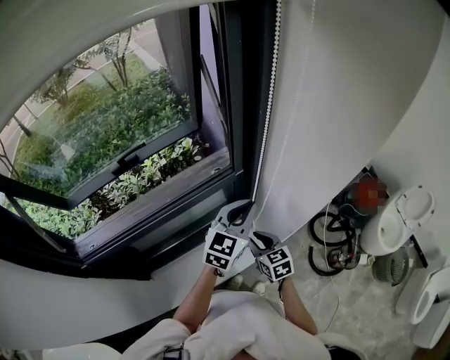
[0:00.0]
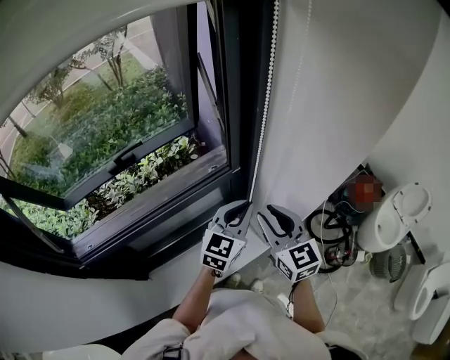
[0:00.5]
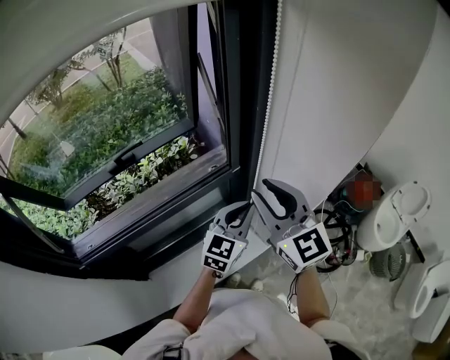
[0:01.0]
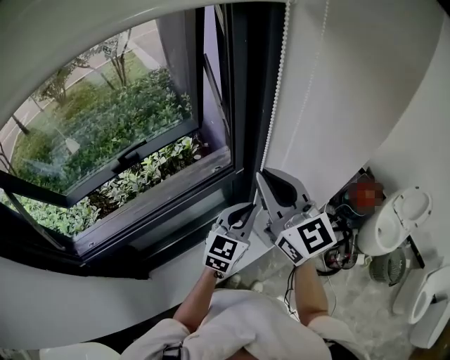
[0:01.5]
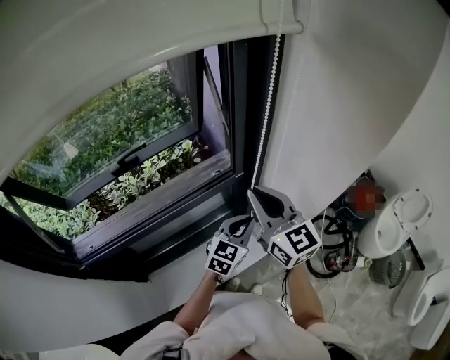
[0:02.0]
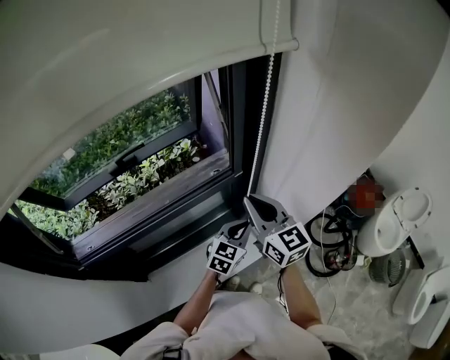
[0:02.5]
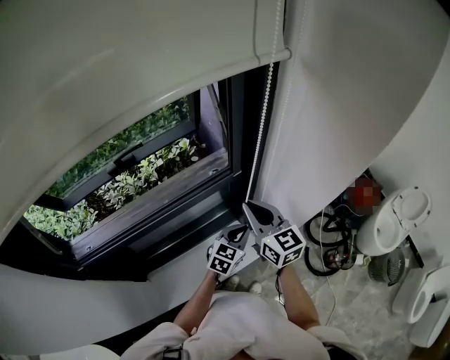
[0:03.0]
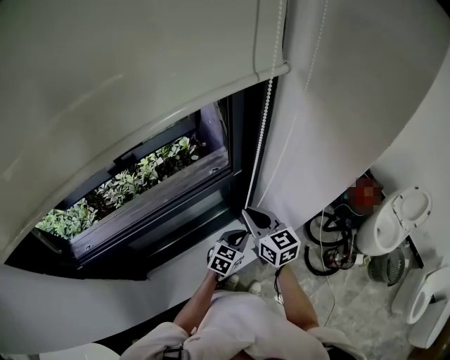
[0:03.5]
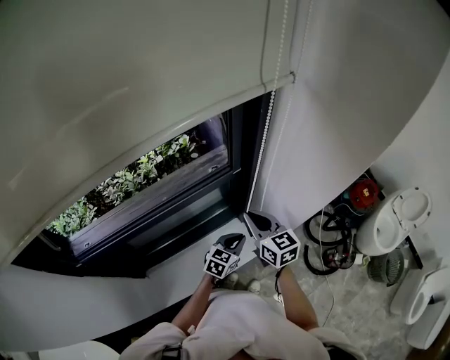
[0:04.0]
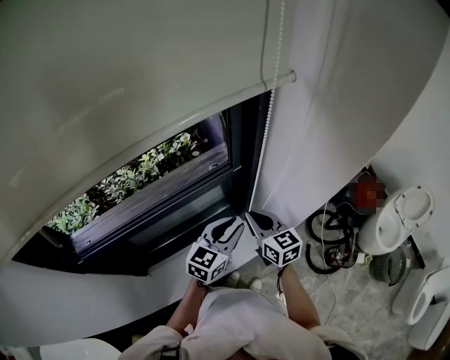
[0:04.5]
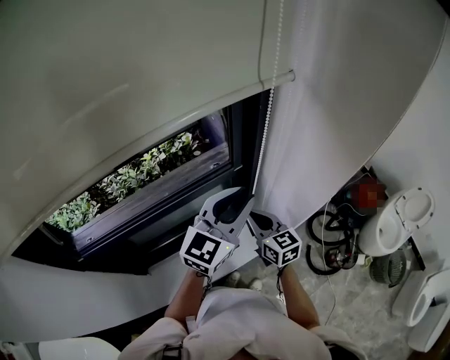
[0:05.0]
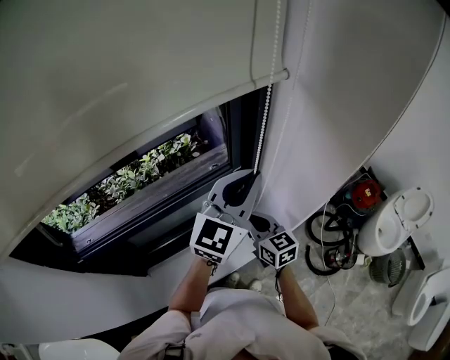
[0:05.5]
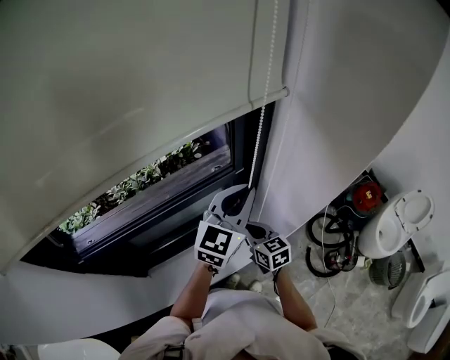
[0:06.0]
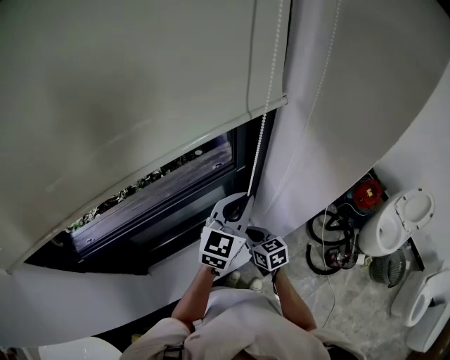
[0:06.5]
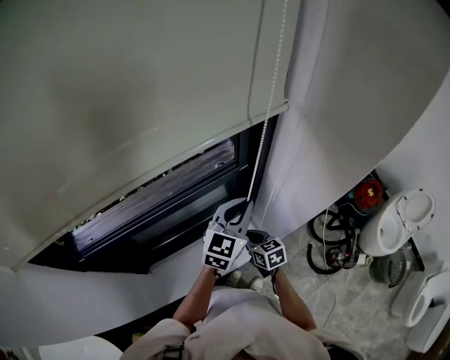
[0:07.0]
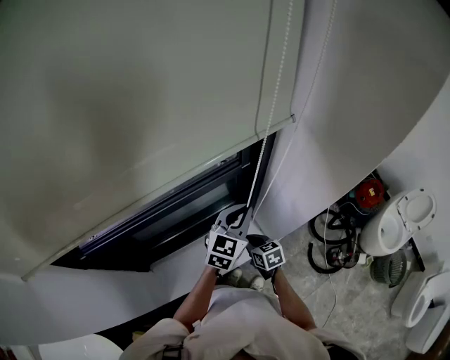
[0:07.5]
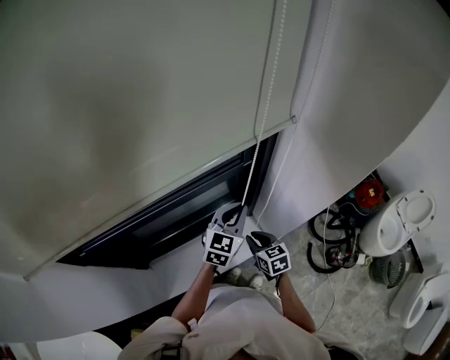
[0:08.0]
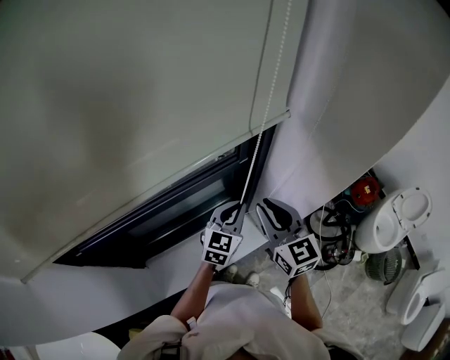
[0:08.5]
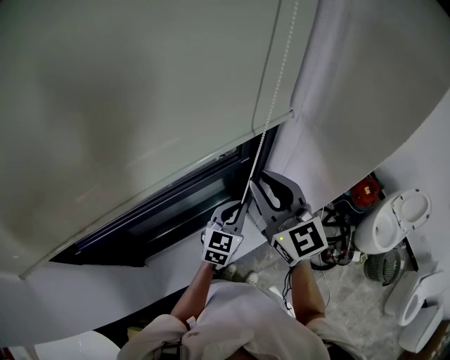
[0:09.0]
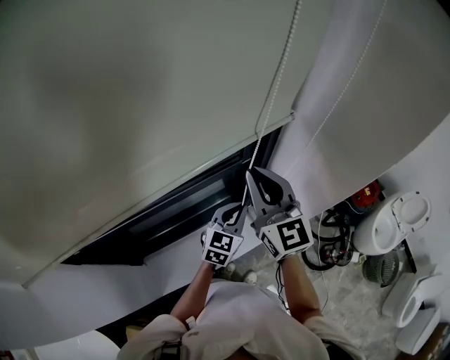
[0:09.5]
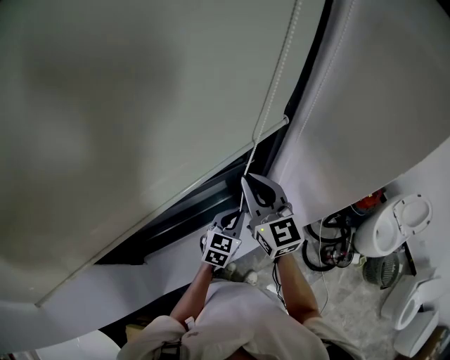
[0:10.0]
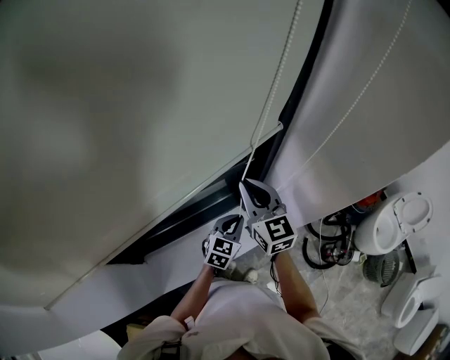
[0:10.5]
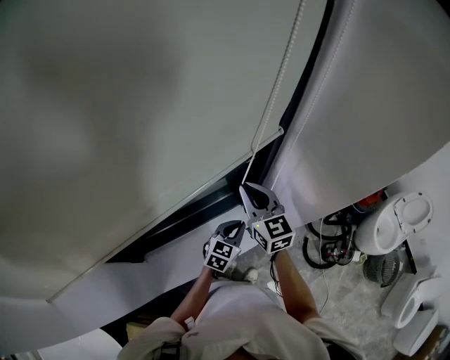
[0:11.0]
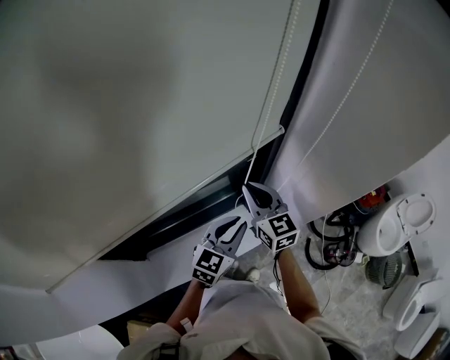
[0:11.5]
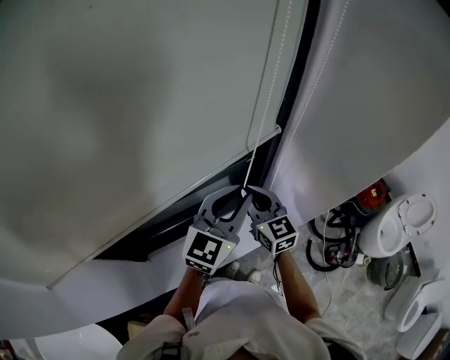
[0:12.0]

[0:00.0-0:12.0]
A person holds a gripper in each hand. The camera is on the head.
0:00.0 to 0:02.0: The left gripper moves downward, approximately 5 cm; the right gripper moves upward, roughly 25 cm, tips its fingers upward by about 30 degrees, and closes its fingers.
0:02.0 to 0:04.0: The two grippers go approximately 15 cm downward. The right gripper swivels approximately 20 degrees.
0:04.0 to 0:06.0: The left gripper heads upward, covering some 30 cm, and rotates roughly 30 degrees, while the right gripper shifts some 5 cm downward.
0:06.0 to 0:08.0: The right gripper travels downward by about 10 cm. Meanwhile the left gripper heads downward, covering roughly 15 cm.
0:08.0 to 0:10.0: The right gripper goes approximately 30 cm upward and forward, and tilts its fingers about 30 degrees upward; the left gripper shifts about 5 cm downward.
0:10.0 to 0:12.0: The left gripper travels upward by approximately 20 cm, and changes its angle by some 20 degrees. Meanwhile the right gripper goes approximately 10 cm downward.

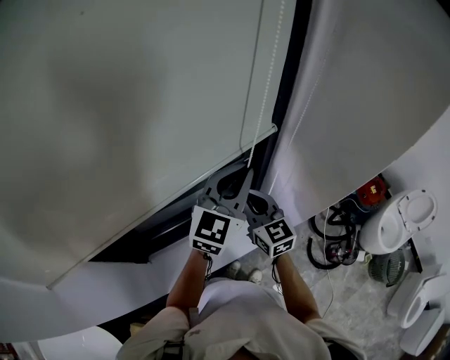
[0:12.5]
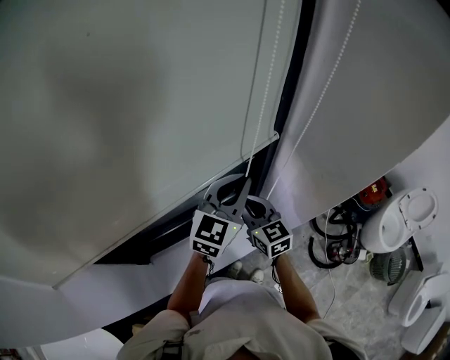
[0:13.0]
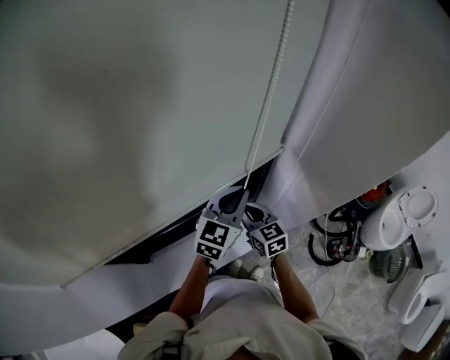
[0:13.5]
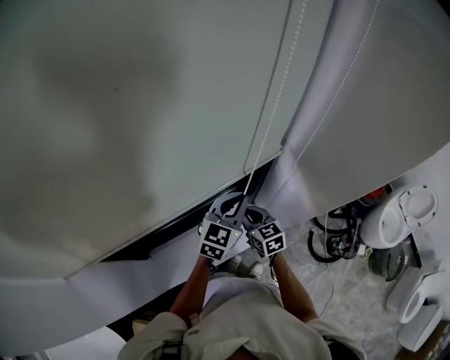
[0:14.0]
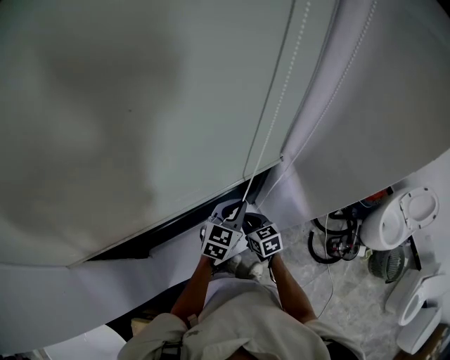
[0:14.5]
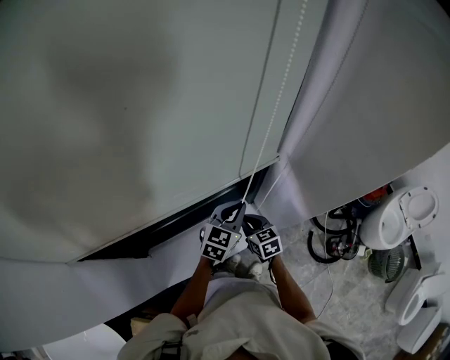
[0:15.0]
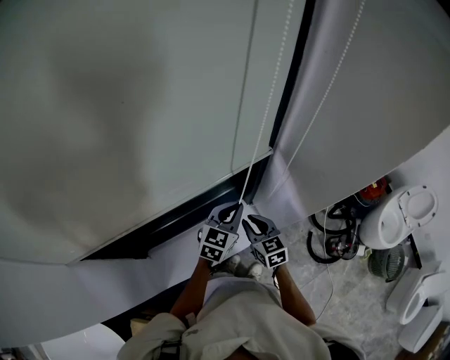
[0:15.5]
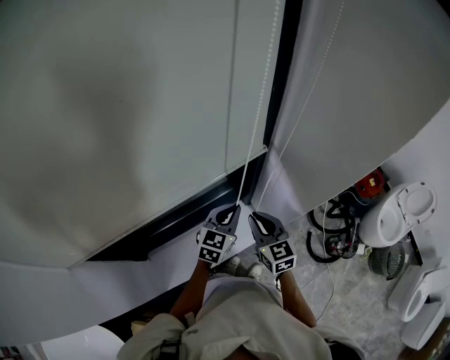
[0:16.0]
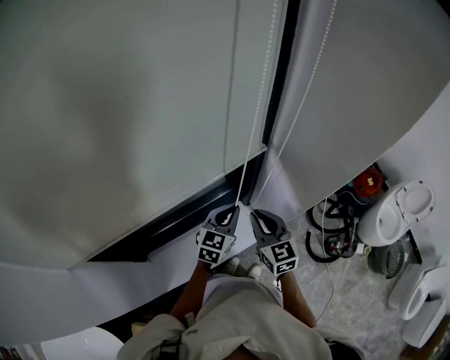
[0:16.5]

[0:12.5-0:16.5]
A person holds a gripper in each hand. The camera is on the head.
0:12.5 to 0:14.5: Both grippers move downward, approximately 20 cm. The right gripper swivels roughly 30 degrees. Meanwhile the left gripper rotates some 20 degrees.
0:14.5 to 0:16.5: The right gripper shifts about 15 cm upward, and swivels some 20 degrees.

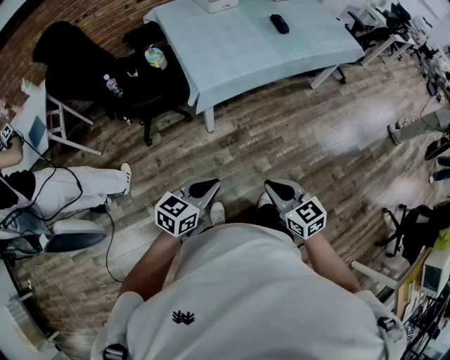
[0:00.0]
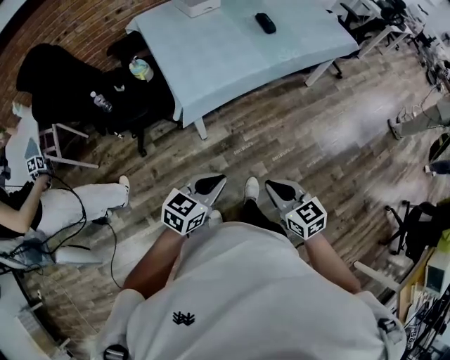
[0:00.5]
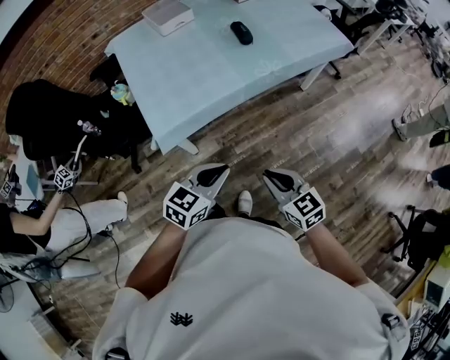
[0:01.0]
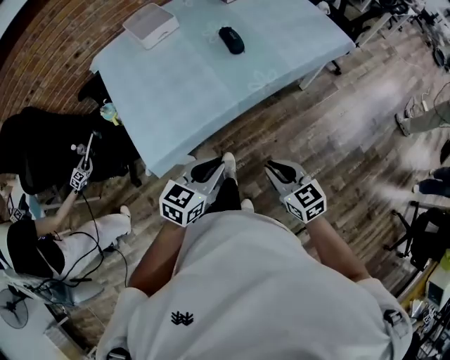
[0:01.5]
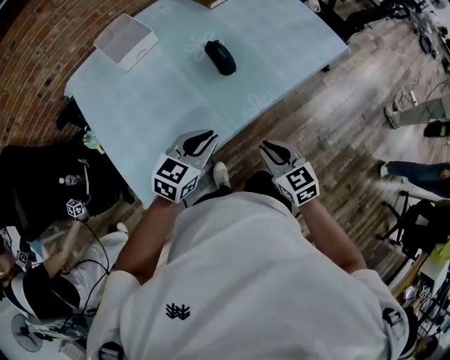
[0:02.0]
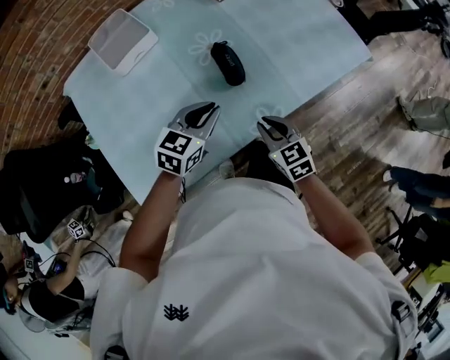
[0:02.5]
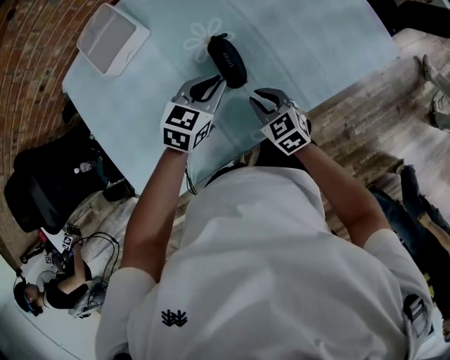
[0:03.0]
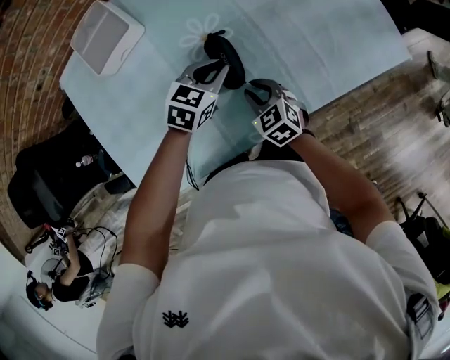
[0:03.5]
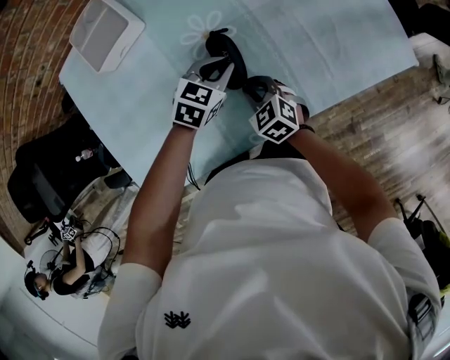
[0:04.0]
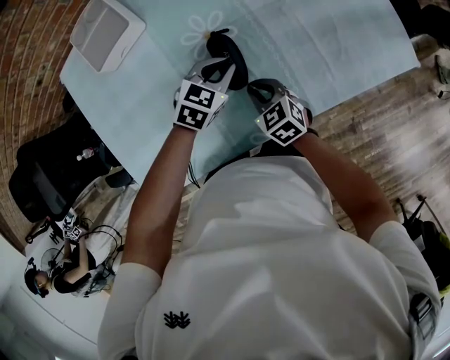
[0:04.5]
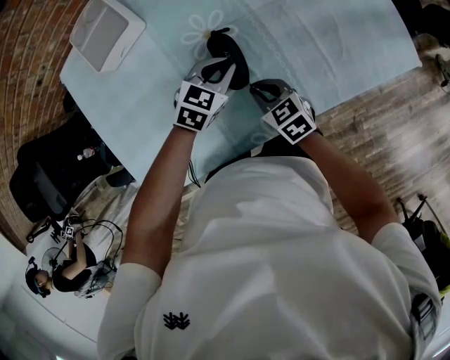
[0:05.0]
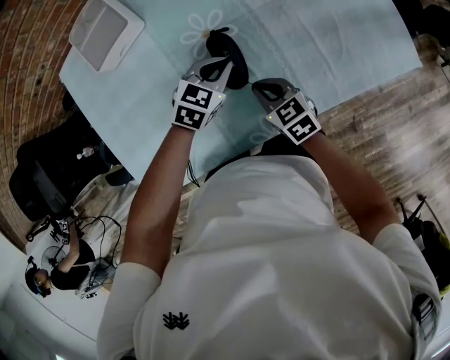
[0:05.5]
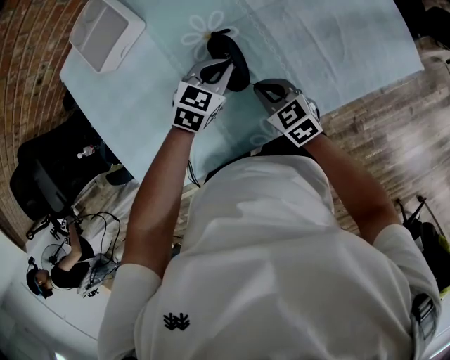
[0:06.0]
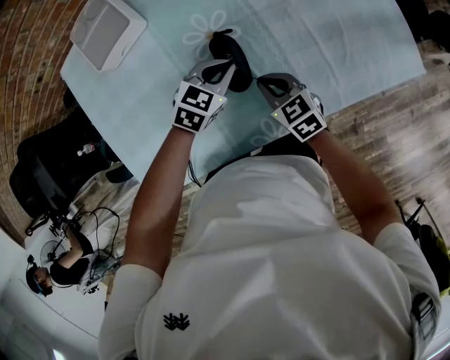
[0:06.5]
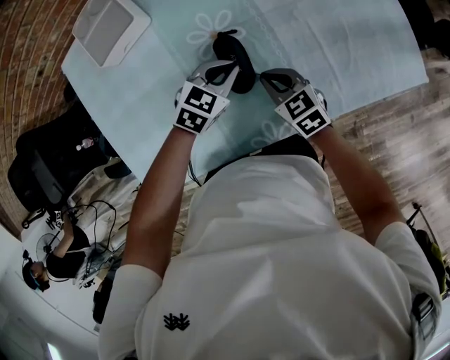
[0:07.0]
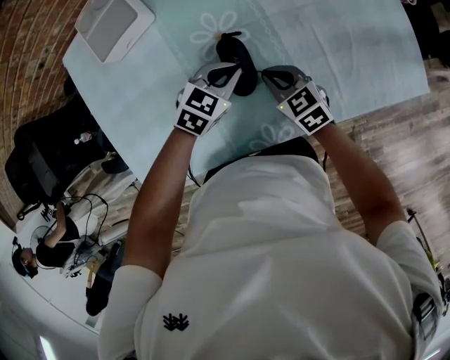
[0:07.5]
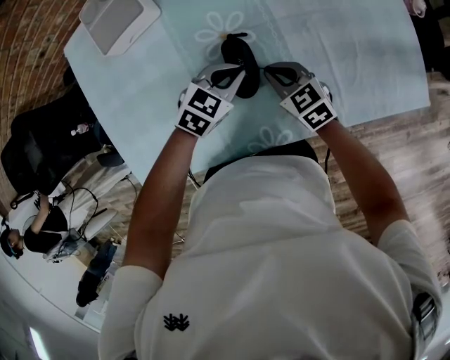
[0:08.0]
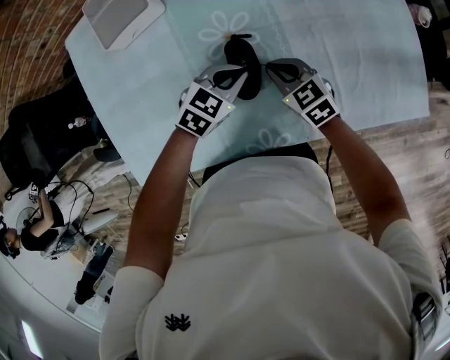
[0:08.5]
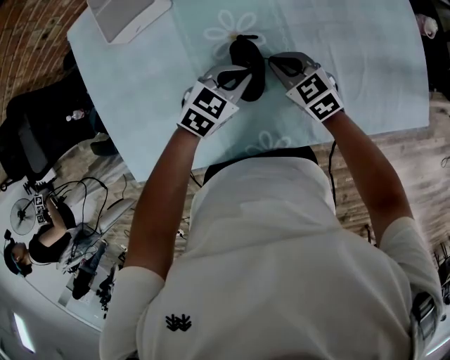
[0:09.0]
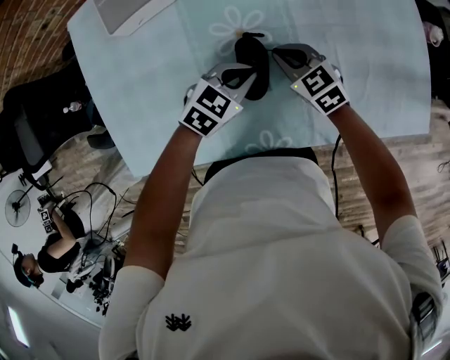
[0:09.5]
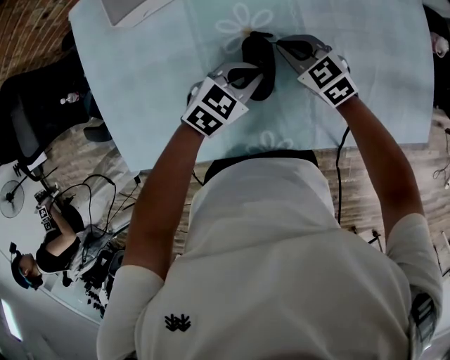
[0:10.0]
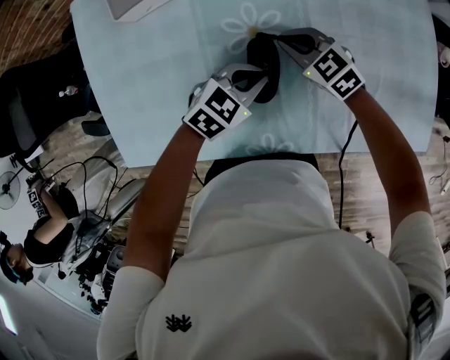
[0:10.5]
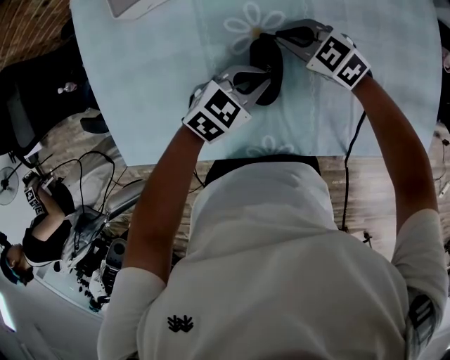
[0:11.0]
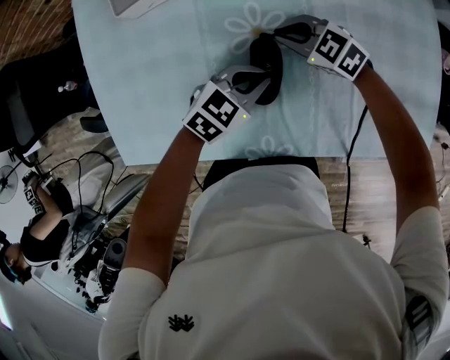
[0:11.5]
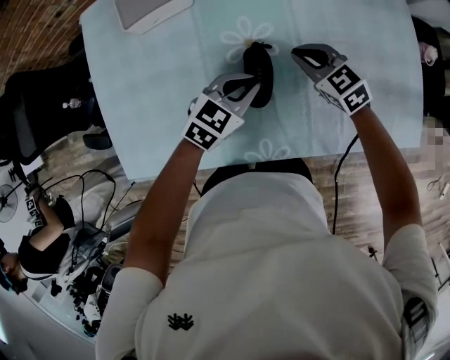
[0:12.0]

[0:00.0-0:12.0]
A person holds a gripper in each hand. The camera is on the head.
0:00.0 to 0:02.0: The two grippers travel together, forward, roughly 60 cm.
0:02.0 to 0:04.0: The two grippers go roughly 35 cm forward and downward. The left gripper rotates some 20 degrees. The right gripper swivels approximately 30 degrees.
0:04.0 to 0:06.0: The grippers stay close to where they were, moving slightly.
0:06.0 to 0:08.0: The right gripper heads forward, covering about 5 cm.
0:08.0 to 0:10.0: The right gripper moves forward, some 10 cm.
0:10.0 to 0:12.0: The right gripper moves about 5 cm.
